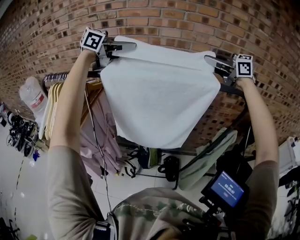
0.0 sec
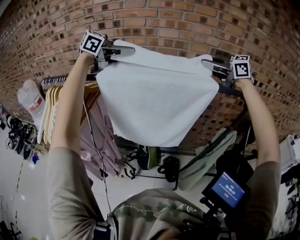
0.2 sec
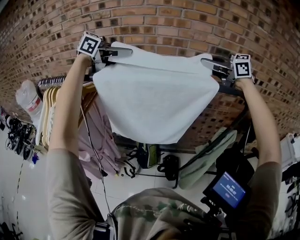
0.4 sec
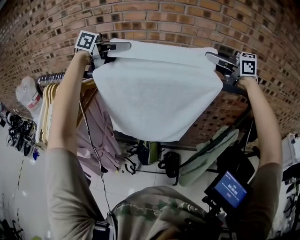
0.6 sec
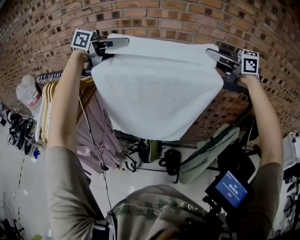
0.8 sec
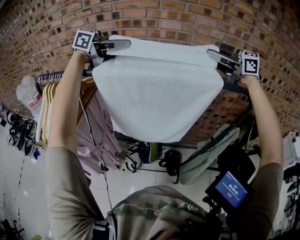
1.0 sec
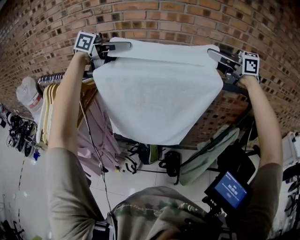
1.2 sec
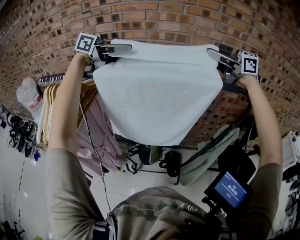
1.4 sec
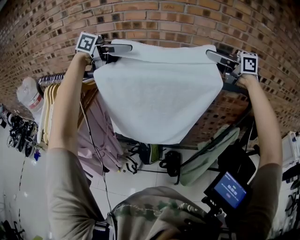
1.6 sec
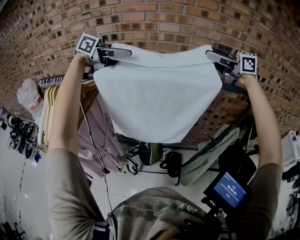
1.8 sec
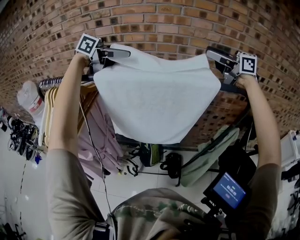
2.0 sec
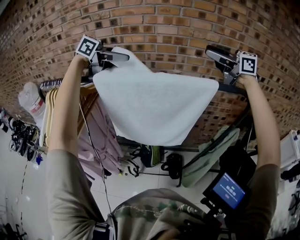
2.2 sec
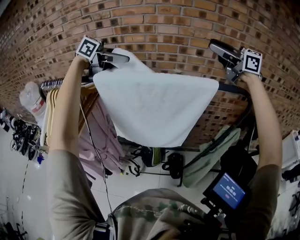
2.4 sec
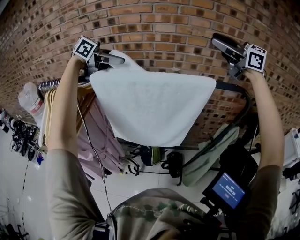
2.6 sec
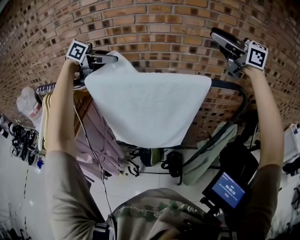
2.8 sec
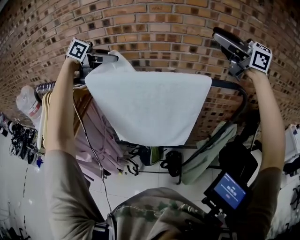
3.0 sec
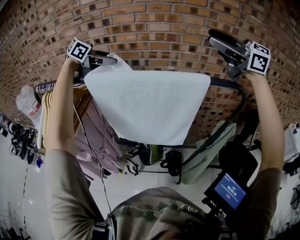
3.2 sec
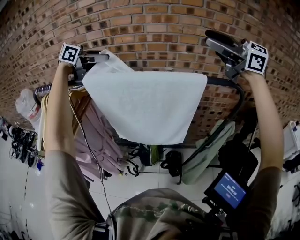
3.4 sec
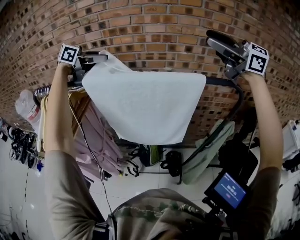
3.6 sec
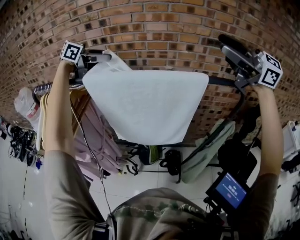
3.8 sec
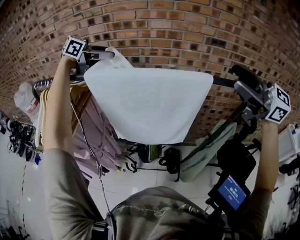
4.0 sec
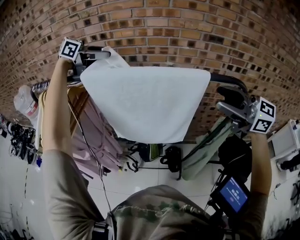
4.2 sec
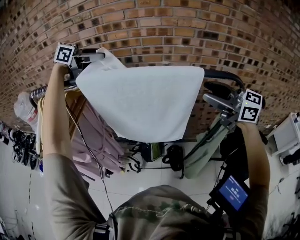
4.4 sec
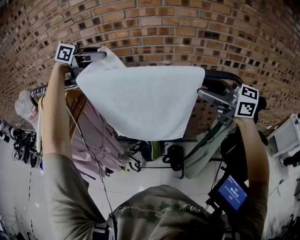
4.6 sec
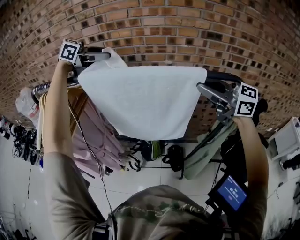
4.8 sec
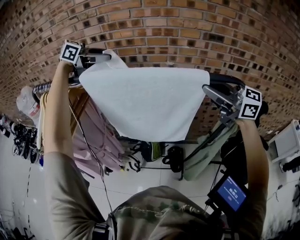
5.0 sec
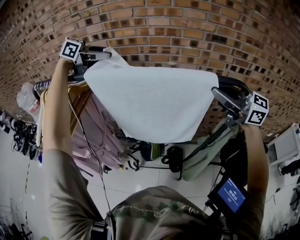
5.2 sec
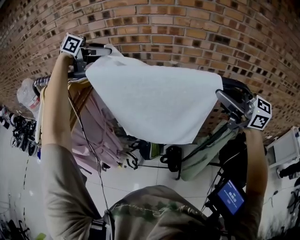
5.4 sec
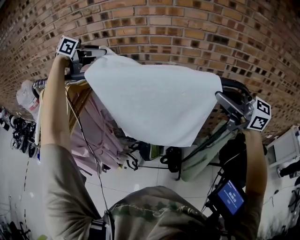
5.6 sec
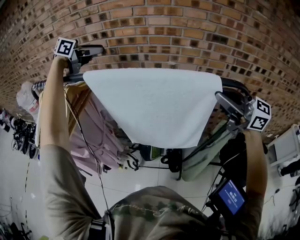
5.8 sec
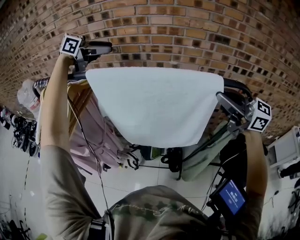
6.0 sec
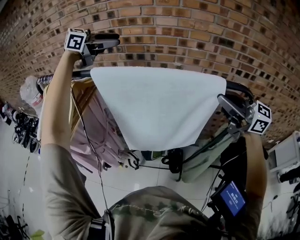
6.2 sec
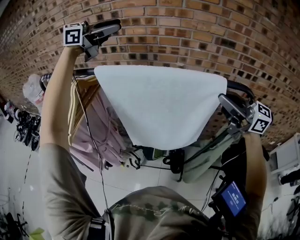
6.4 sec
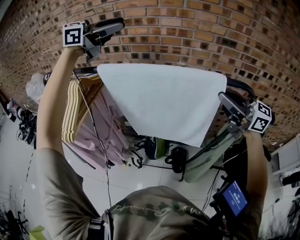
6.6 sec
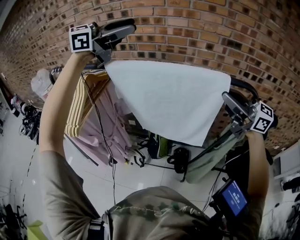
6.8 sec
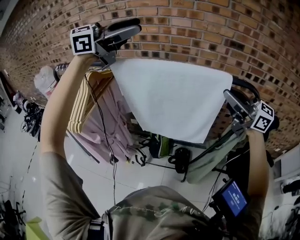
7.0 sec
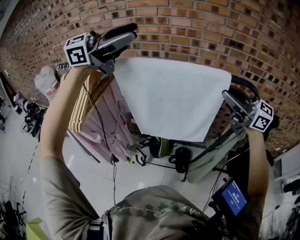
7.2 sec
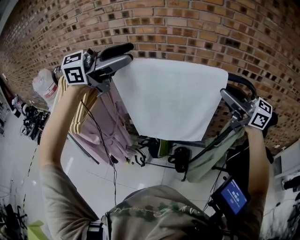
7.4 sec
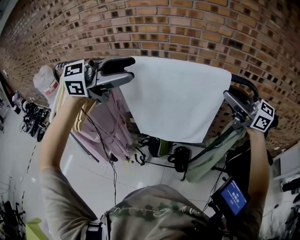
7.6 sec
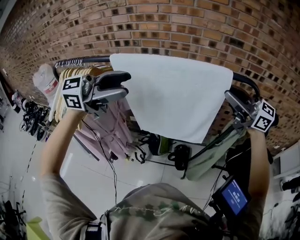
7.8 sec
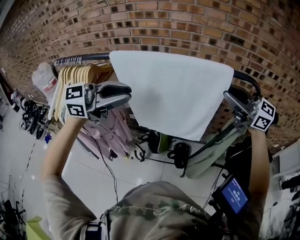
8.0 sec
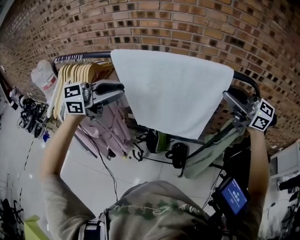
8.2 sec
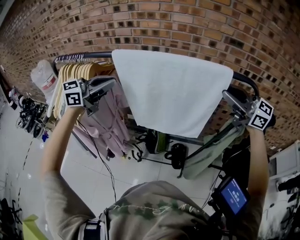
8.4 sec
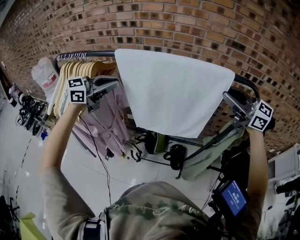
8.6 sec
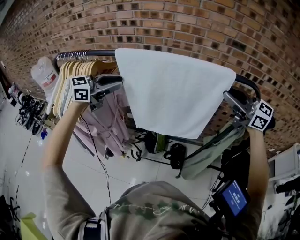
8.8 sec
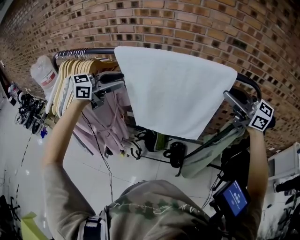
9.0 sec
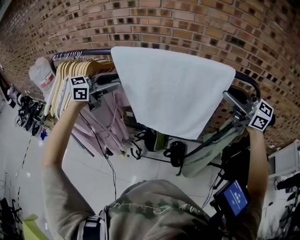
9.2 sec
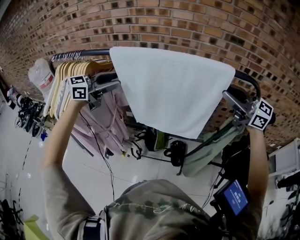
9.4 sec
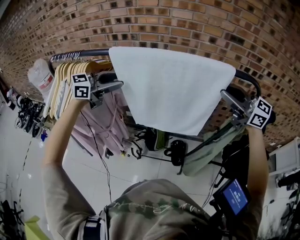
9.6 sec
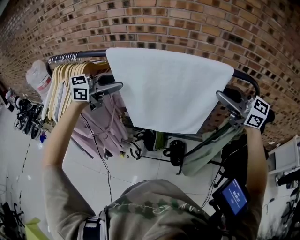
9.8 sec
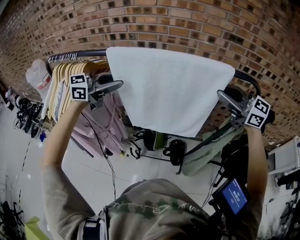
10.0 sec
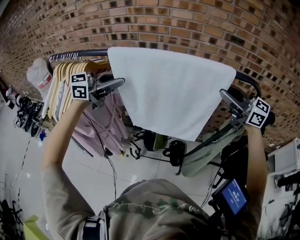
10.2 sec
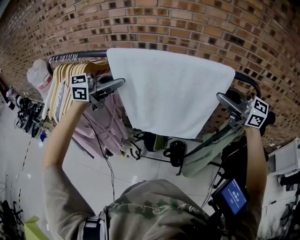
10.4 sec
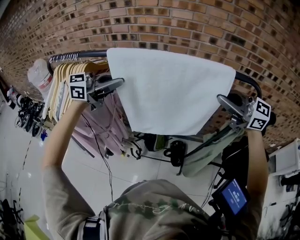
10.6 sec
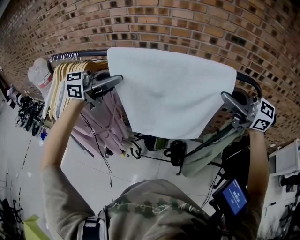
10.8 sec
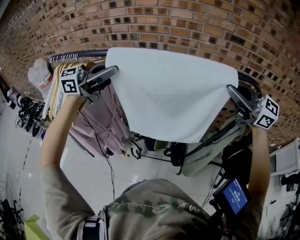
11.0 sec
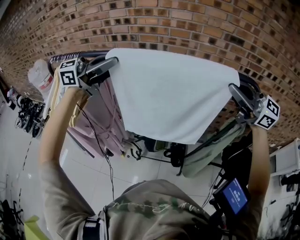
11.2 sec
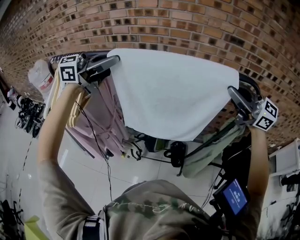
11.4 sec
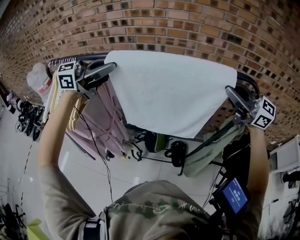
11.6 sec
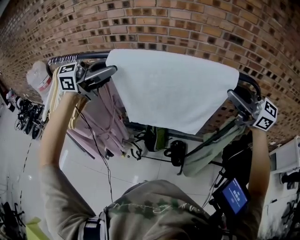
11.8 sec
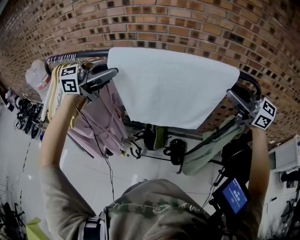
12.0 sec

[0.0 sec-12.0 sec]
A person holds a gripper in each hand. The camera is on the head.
0.0 sec to 1.6 sec: The right gripper opens its fingers, while the left gripper opens up.
1.6 sec to 3.0 sec: The right gripper goes roughly 10 cm upward.
3.0 sec to 4.4 sec: The right gripper shifts roughly 20 cm downward.
4.4 sec to 6.0 sec: The right gripper closes up.
6.0 sec to 7.6 sec: The left gripper goes upward and returns, about 10 cm each way, and swivels roughly 30 degrees.
7.6 sec to 9.0 sec: The left gripper moves downward, about 15 cm, and closes up.
9.0 sec to 10.4 sec: The left gripper closes.
10.4 sec to 12.0 sec: The left gripper shifts some 5 cm upward.

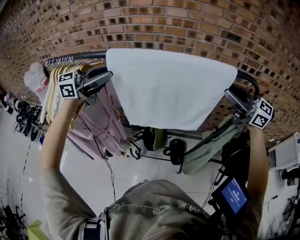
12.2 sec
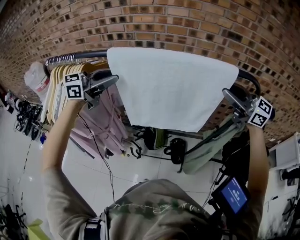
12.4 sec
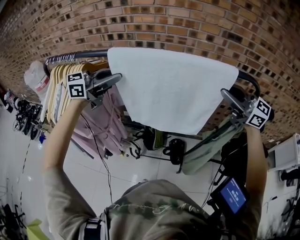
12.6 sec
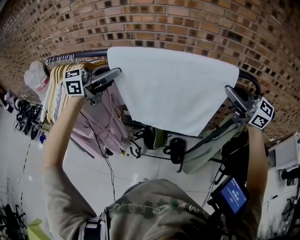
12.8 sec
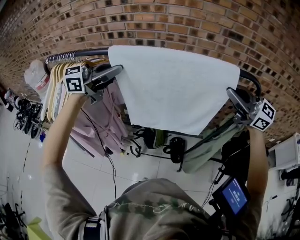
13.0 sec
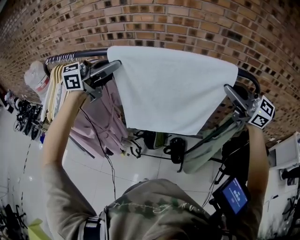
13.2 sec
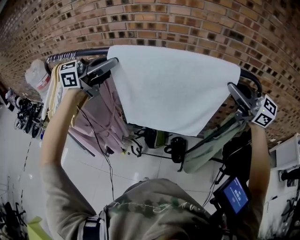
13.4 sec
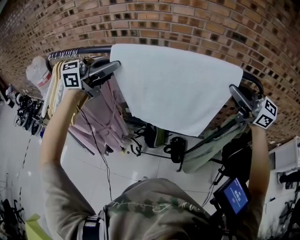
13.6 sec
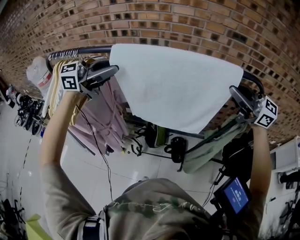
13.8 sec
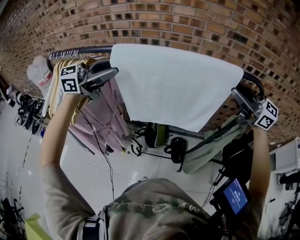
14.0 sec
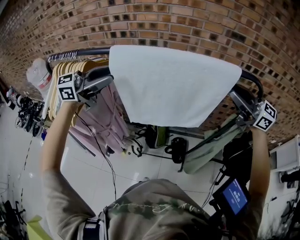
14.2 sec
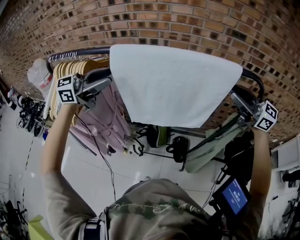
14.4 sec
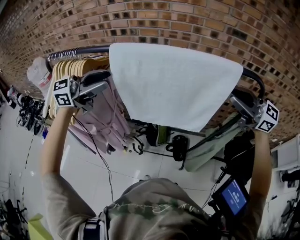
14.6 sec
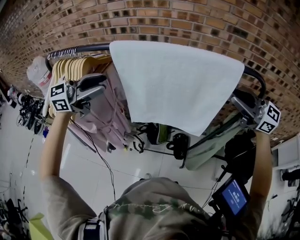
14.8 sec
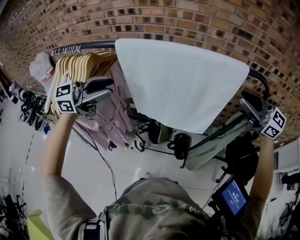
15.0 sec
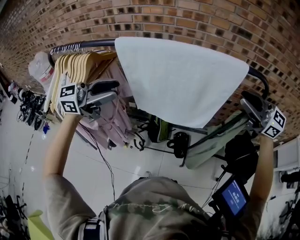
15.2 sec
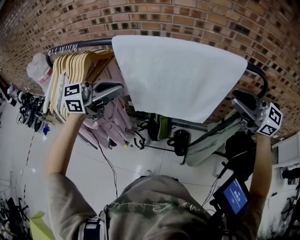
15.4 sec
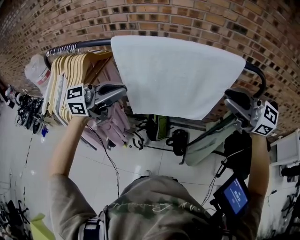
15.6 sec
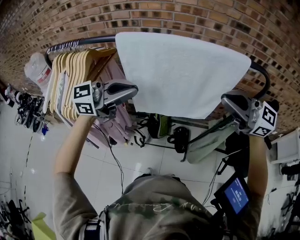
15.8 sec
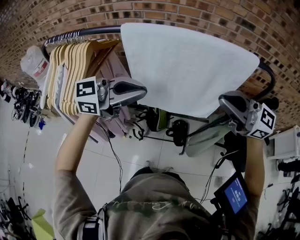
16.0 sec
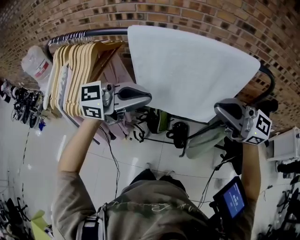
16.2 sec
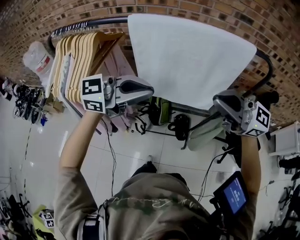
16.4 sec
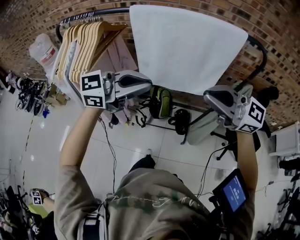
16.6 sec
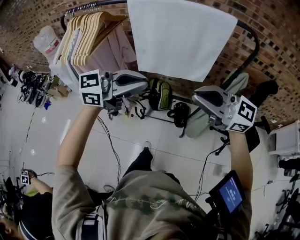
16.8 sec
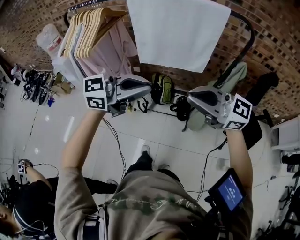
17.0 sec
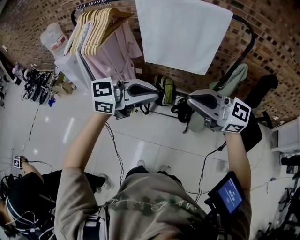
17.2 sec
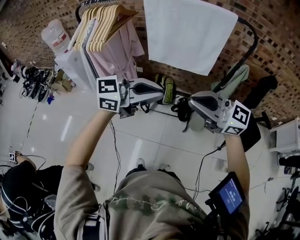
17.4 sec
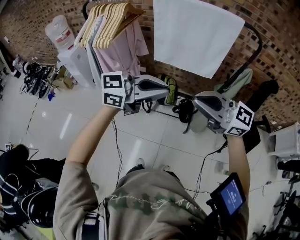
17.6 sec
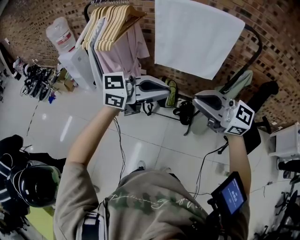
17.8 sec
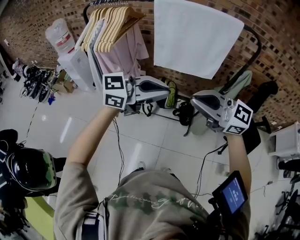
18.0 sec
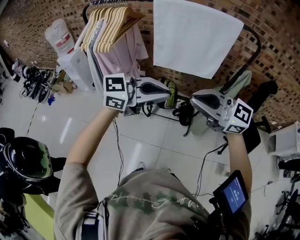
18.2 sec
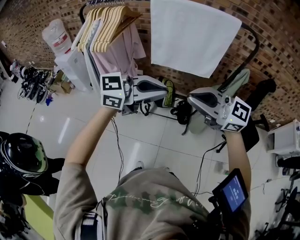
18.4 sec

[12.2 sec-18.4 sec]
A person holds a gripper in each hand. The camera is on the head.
12.2 sec to 13.8 sec: There are only small adjustments of the grippers.
13.8 sec to 15.4 sec: The left gripper heads downward, covering approximately 5 cm, and closes up; the right gripper shifts by about 5 cm.
15.4 sec to 16.8 sec: The right gripper shifts by about 25 cm, and closes. Meanwhile the left gripper changes place by approximately 25 cm.
16.8 sec to 18.4 sec: The left gripper changes place by about 10 cm. The right gripper shifts by approximately 10 cm.

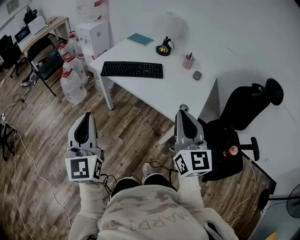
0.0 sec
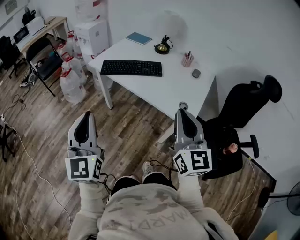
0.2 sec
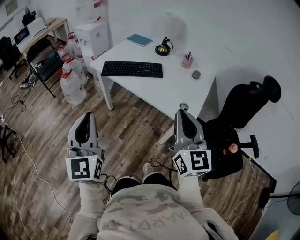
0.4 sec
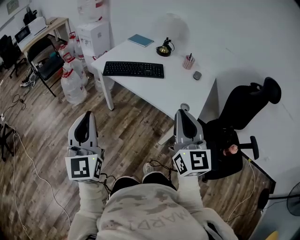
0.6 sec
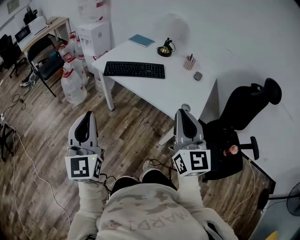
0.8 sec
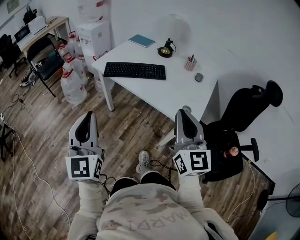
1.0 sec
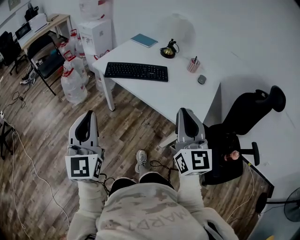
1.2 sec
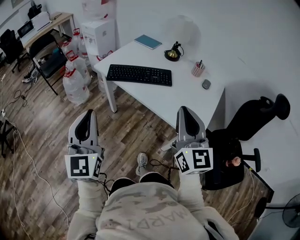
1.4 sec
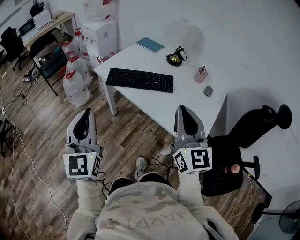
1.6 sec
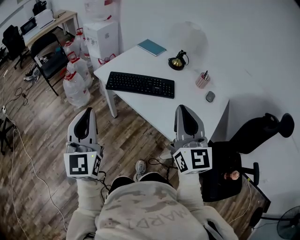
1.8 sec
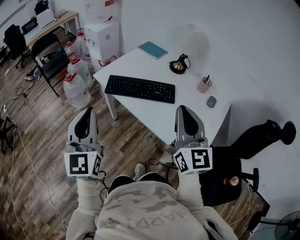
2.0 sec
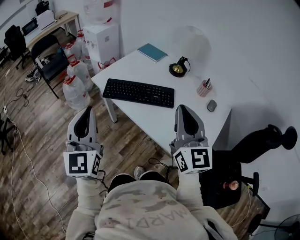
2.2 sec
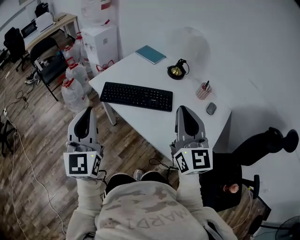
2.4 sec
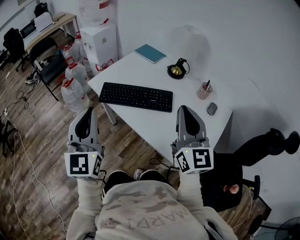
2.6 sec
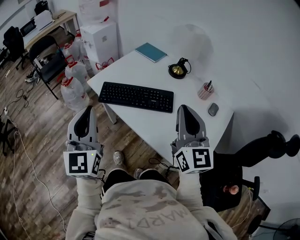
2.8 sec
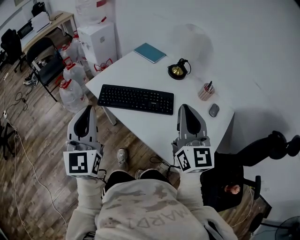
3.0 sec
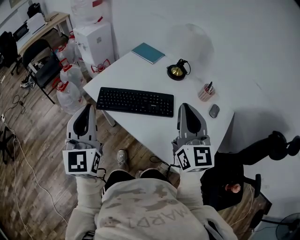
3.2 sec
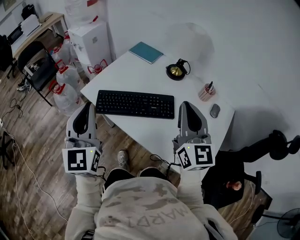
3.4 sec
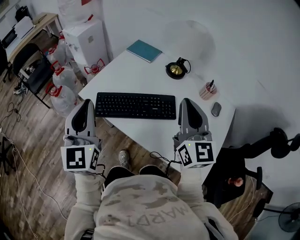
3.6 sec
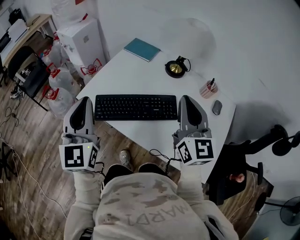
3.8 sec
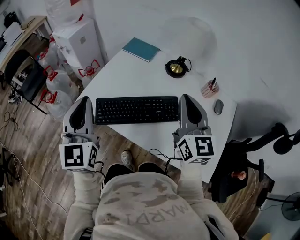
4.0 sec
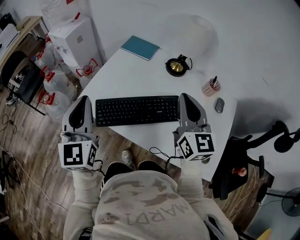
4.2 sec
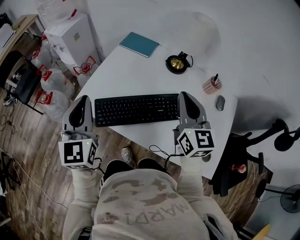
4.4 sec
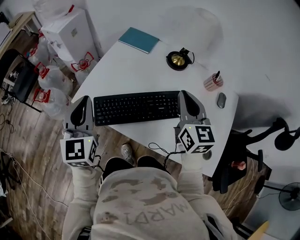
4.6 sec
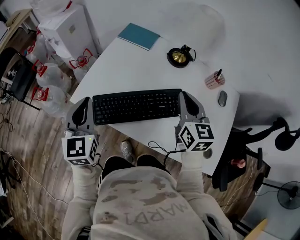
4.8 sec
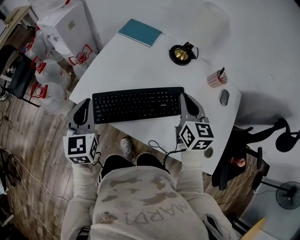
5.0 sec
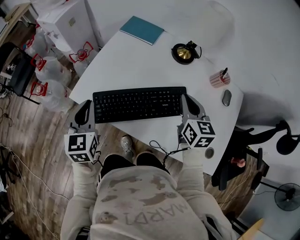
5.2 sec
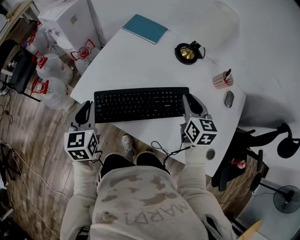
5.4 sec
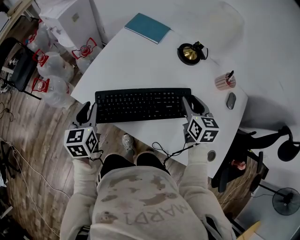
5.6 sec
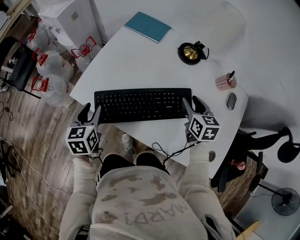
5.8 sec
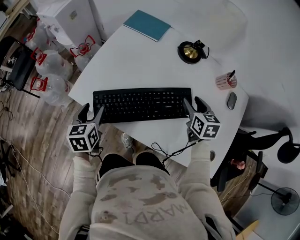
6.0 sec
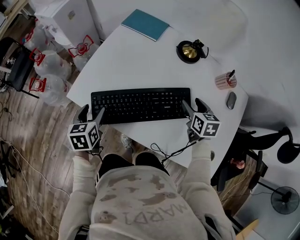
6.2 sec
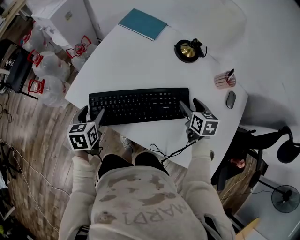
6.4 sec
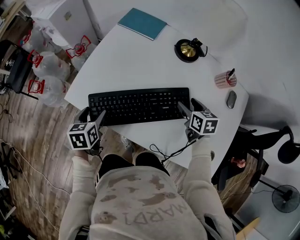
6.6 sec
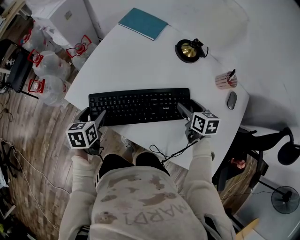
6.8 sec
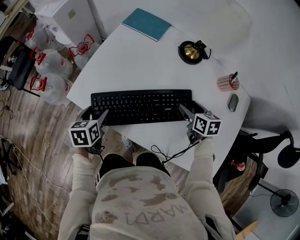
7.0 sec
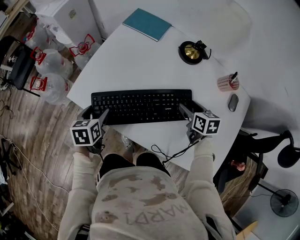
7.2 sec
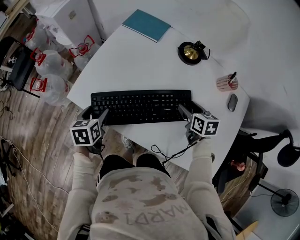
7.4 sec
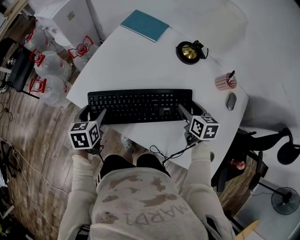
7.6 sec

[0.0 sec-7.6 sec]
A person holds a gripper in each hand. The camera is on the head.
0.0 sec to 1.6 sec: The grippers both shift forward by approximately 15 cm.
1.6 sec to 3.0 sec: The two grippers go about 20 cm forward.
3.0 sec to 4.6 sec: The right gripper is displaced forward and downward by approximately 20 cm, and swivels some 20 degrees. Meanwhile the left gripper goes approximately 25 cm forward.
4.6 sec to 6.0 sec: The two grippers go roughly 20 cm downward. The left gripper points its fingers roughly 30 degrees further downward, and opens, while the right gripper points its fingers approximately 30 degrees further downward, and opens its fingers.
6.0 sec to 7.6 sec: The grippers make only small movements.
